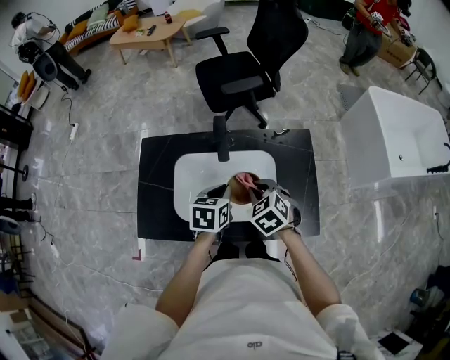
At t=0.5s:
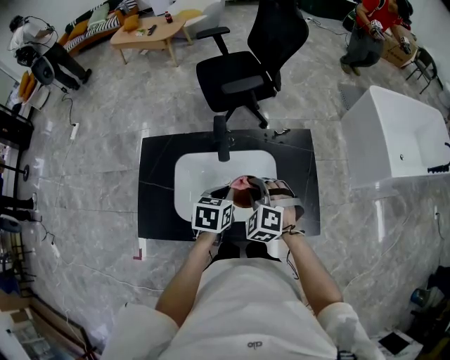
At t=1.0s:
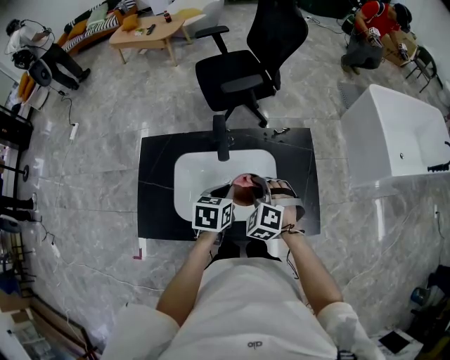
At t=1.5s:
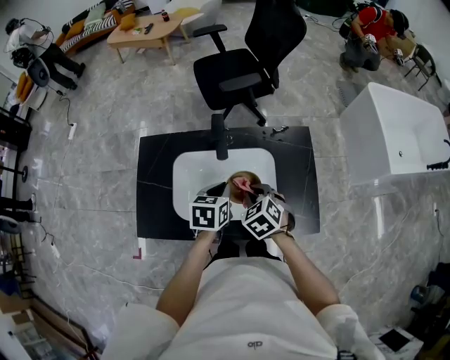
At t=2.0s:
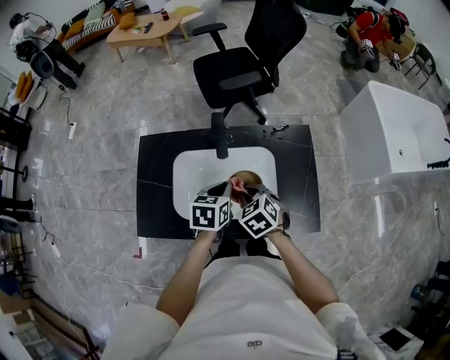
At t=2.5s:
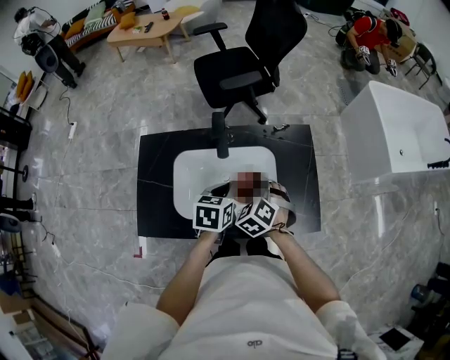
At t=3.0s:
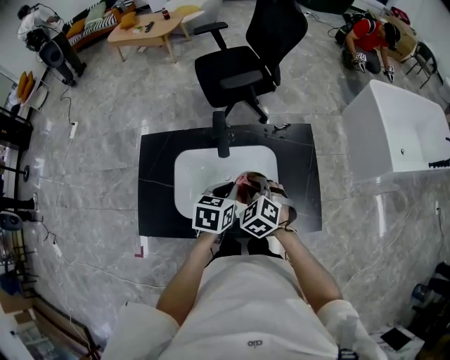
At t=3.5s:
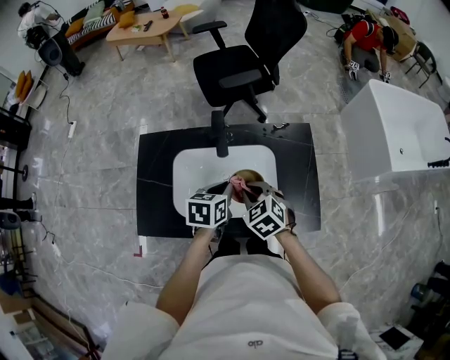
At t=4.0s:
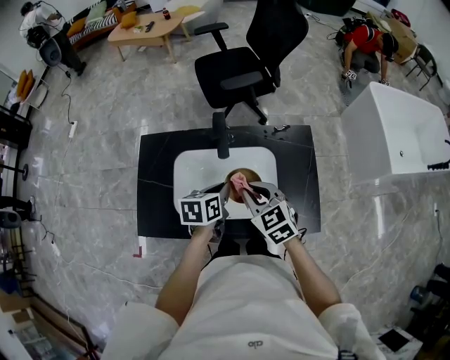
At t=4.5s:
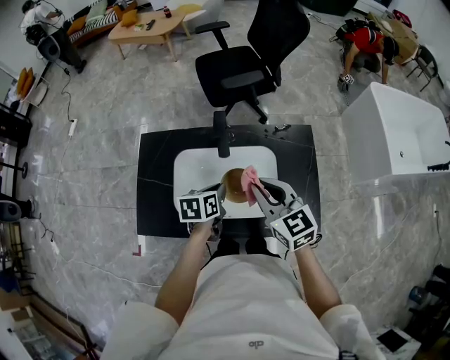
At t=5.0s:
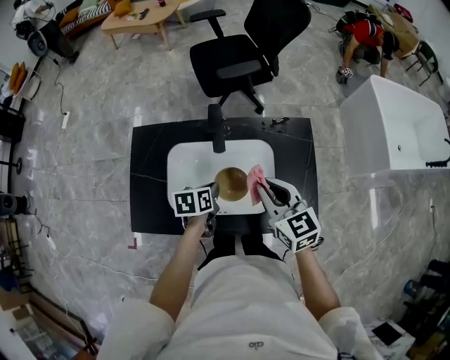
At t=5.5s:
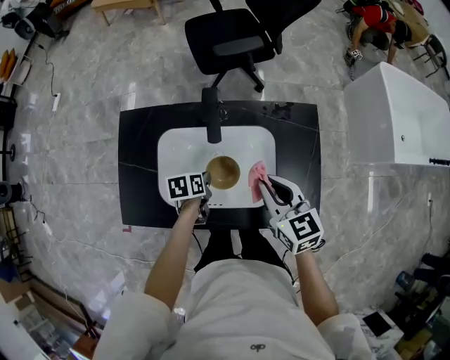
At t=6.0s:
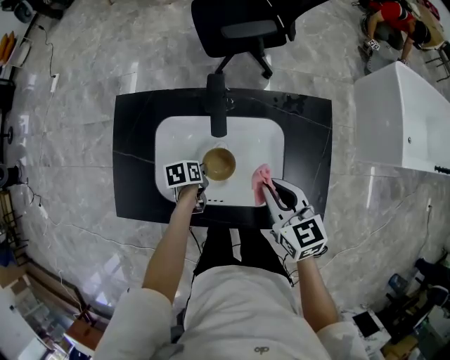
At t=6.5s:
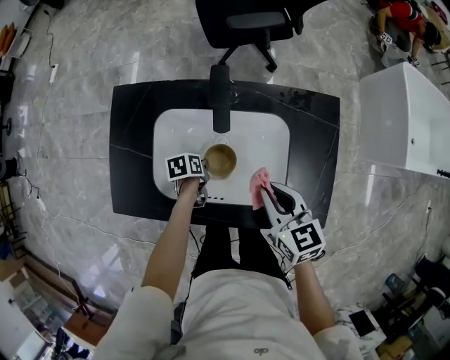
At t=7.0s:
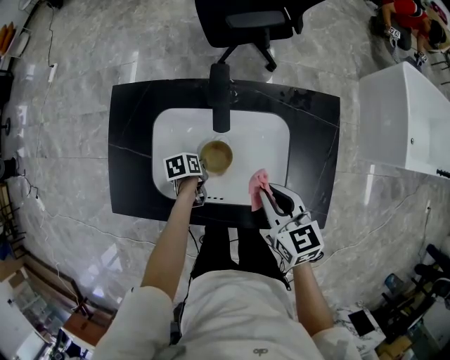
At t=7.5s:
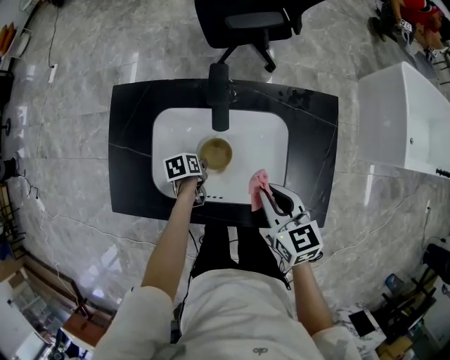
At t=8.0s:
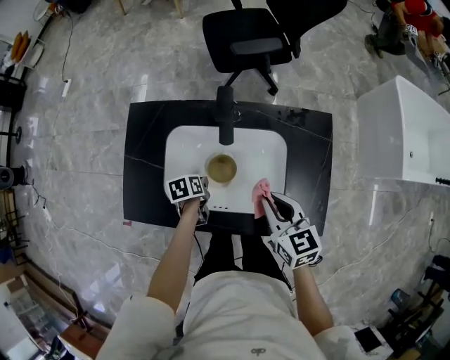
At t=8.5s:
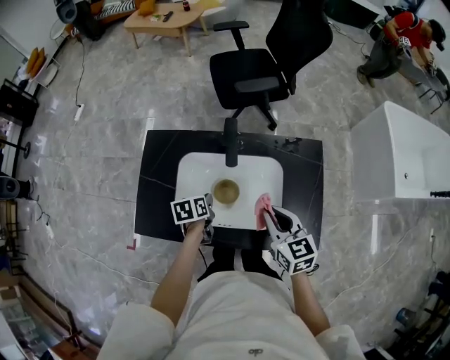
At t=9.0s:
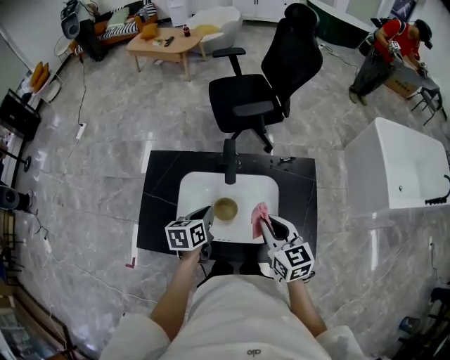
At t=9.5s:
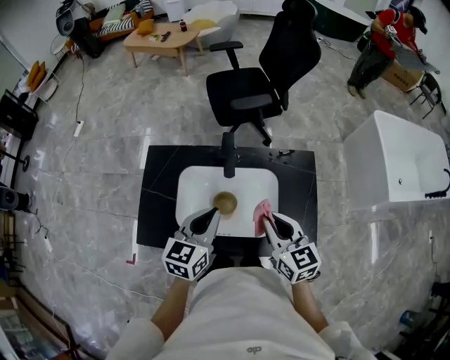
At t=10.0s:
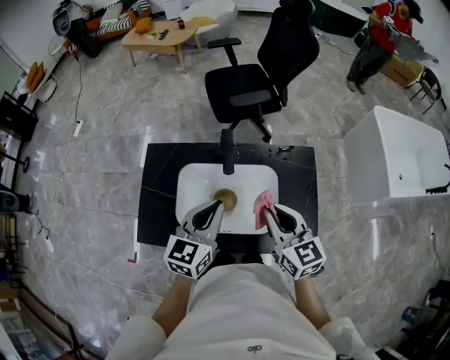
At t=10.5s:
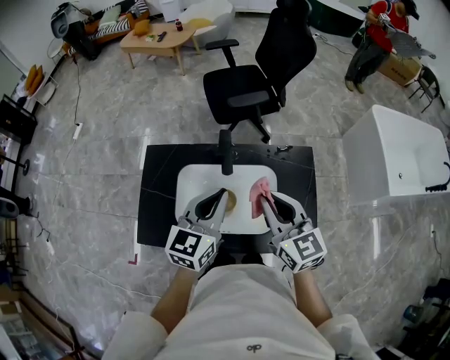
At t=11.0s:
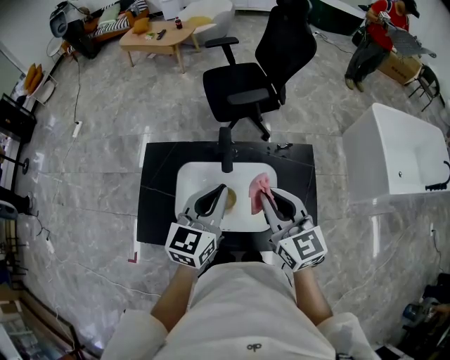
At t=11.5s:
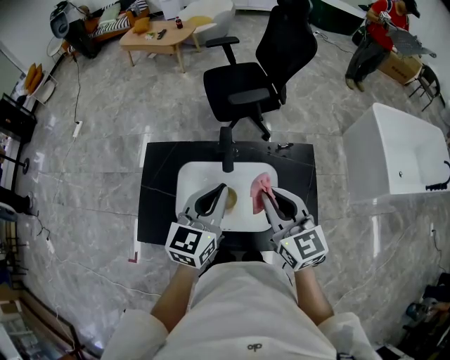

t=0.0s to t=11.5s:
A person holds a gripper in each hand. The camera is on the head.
t=2.0s to t=4.0s: The right gripper moves upward, about 5 cm.
t=4.0s to t=6.0s: The right gripper is displaced to the right by some 5 cm, and swivels some 20 degrees; the left gripper moves downward, approximately 20 cm, and turns by about 30 degrees.
t=6.0s to t=7.5s: The left gripper opens up.
t=7.5s to t=9.5s: The left gripper is displaced upward by about 40 cm, angles its fingers upward, by approximately 40 degrees, and closes. The right gripper heads upward, covering approximately 15 cm.
t=9.5s to t=11.5s: The two grippers go approximately 5 cm upward.

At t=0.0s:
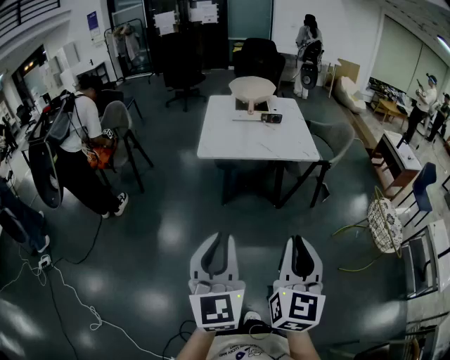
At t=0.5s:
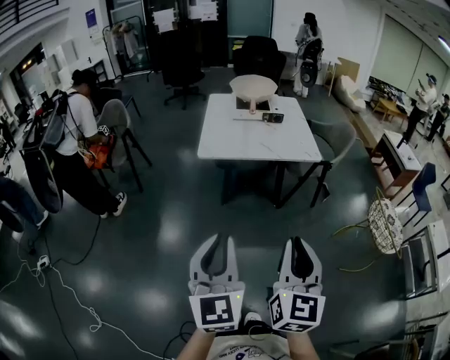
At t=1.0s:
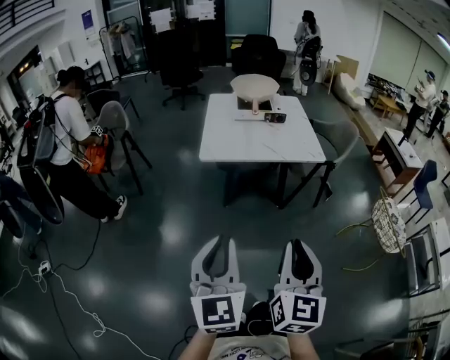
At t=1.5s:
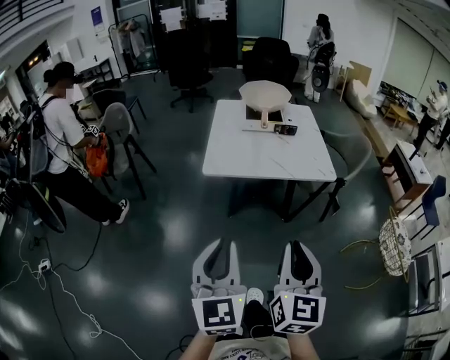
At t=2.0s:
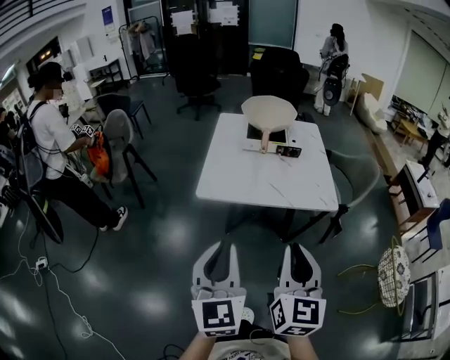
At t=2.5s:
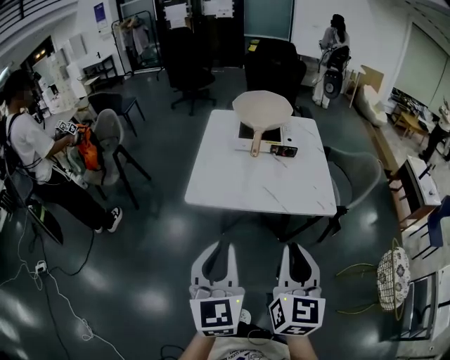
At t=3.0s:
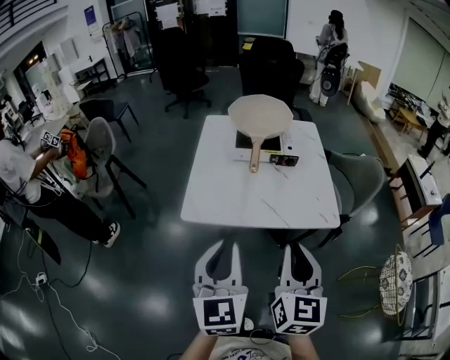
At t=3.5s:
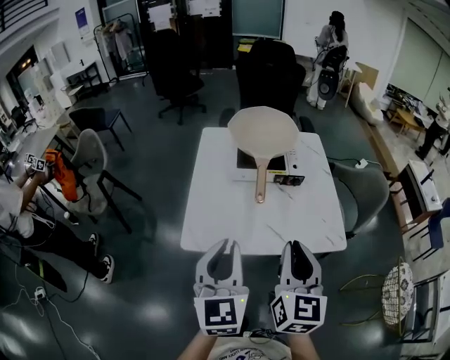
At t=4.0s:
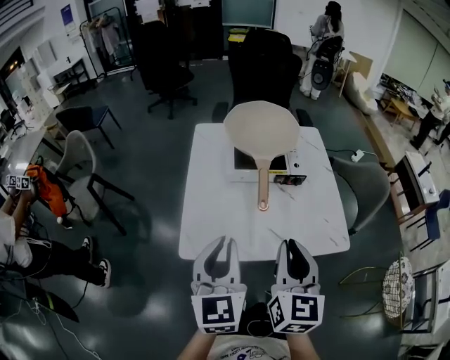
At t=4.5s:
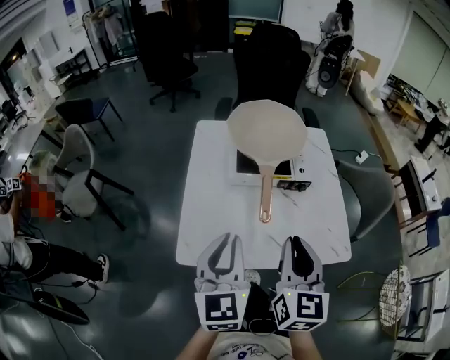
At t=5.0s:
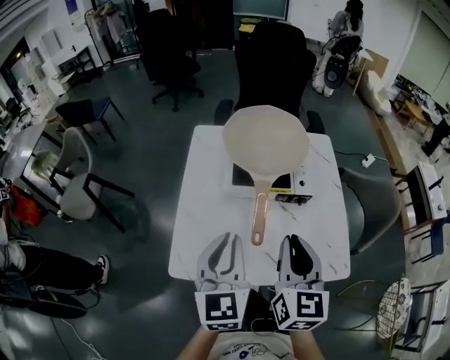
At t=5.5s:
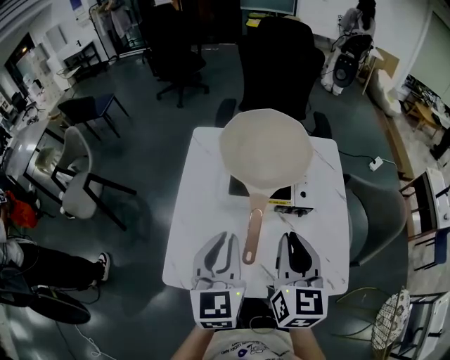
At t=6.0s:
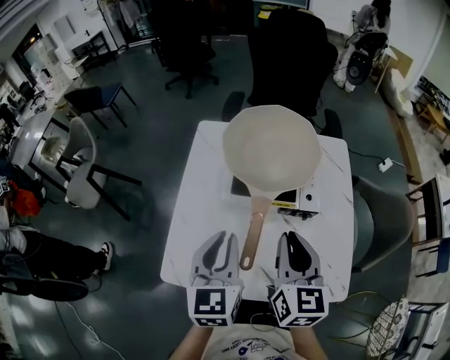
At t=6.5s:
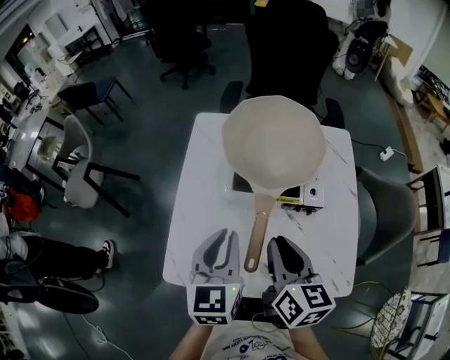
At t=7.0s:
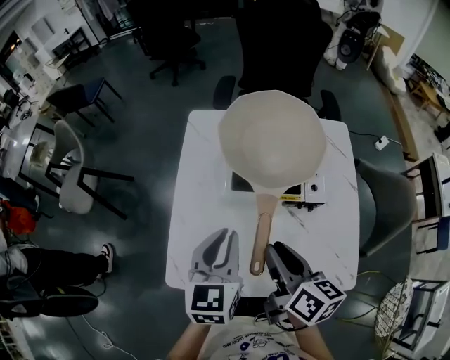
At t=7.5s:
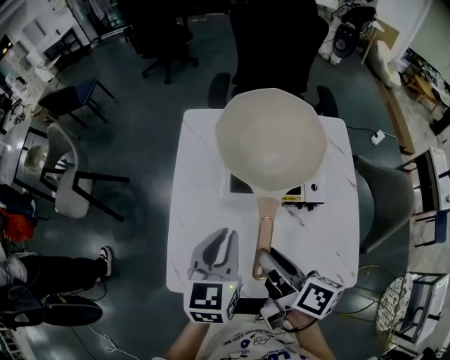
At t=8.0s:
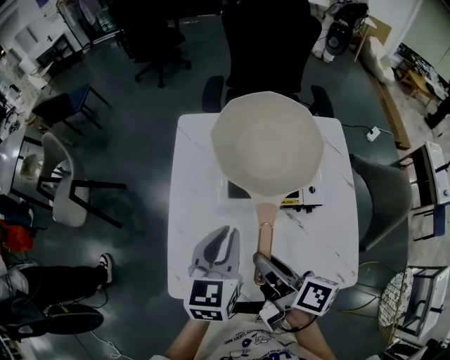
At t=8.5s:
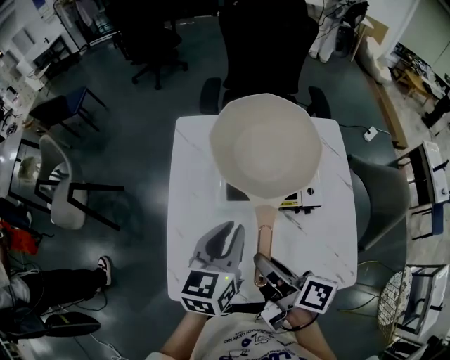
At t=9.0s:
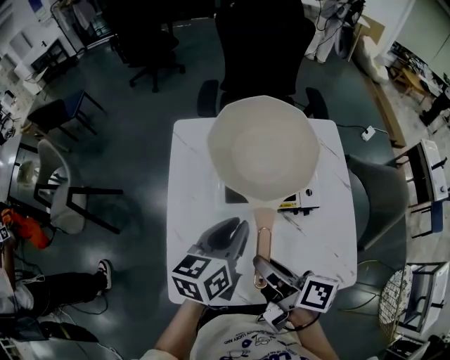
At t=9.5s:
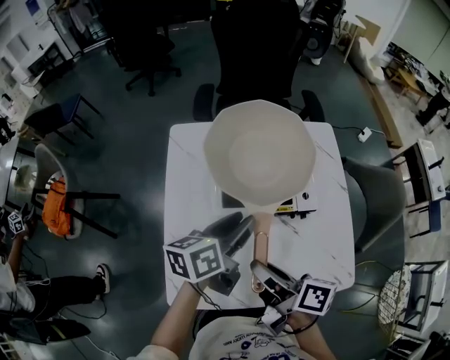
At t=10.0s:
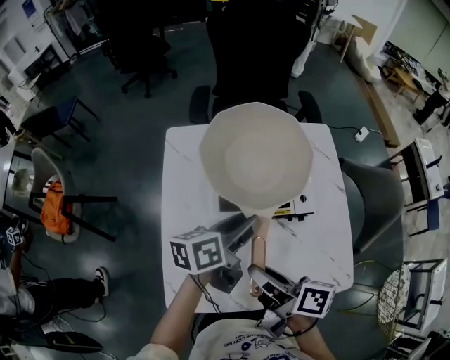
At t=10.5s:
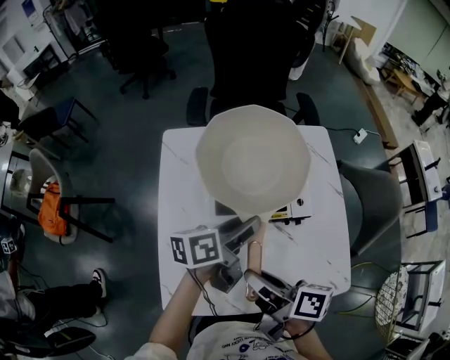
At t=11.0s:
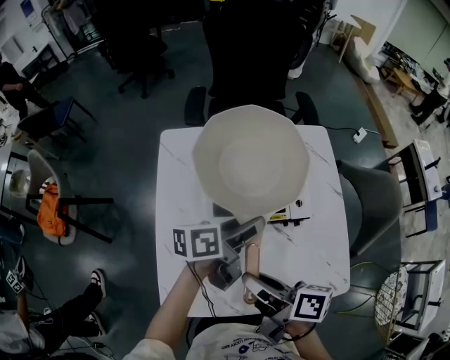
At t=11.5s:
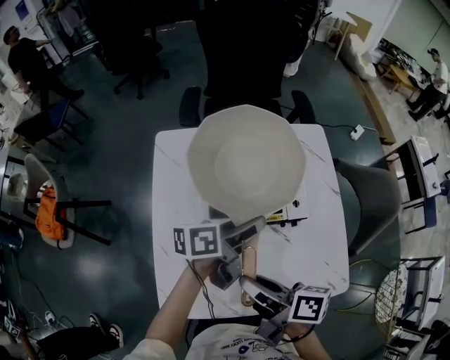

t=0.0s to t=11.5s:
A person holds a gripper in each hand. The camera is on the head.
t=0.0s to t=2.0s: The two grippers go some 25 cm forward.
t=2.0s to t=4.0s: The two grippers go some 30 cm forward.
t=4.0s to t=6.0s: The grippers both shift forward by roughly 20 cm.
t=6.0s to t=7.5s: The left gripper moves roughly 5 cm; the right gripper goes approximately 10 cm to the left and downward, twists about 50 degrees clockwise, seen from behind, and opens up.
t=7.5s to t=9.5s: The left gripper moves forward and to the right, about 10 cm, rotates about 40 degrees, and opens its fingers.
t=9.5s to t=11.5s: The left gripper heads to the right, covering approximately 5 cm, and turns by roughly 20 degrees.

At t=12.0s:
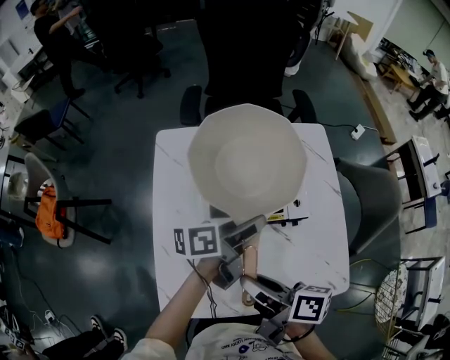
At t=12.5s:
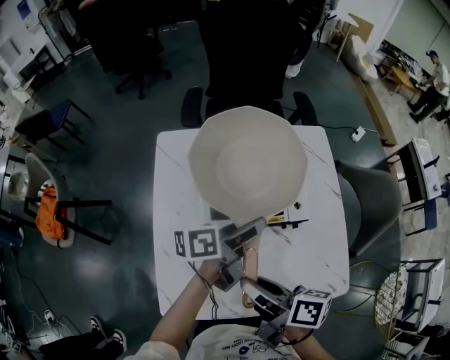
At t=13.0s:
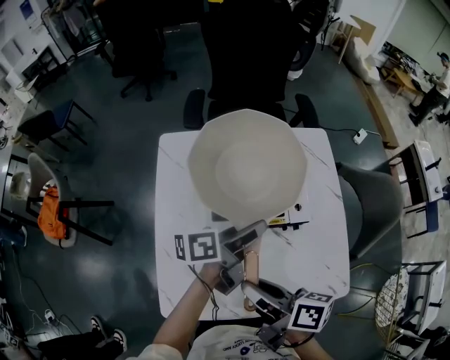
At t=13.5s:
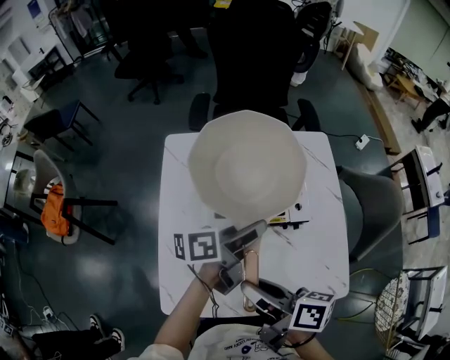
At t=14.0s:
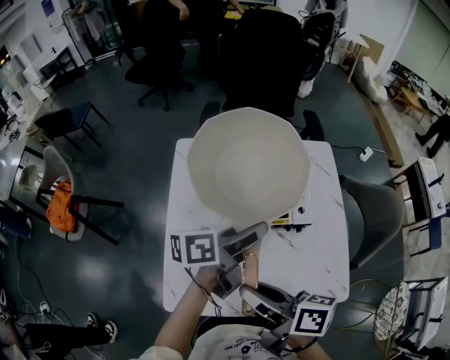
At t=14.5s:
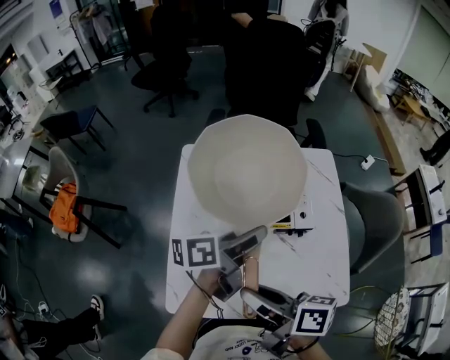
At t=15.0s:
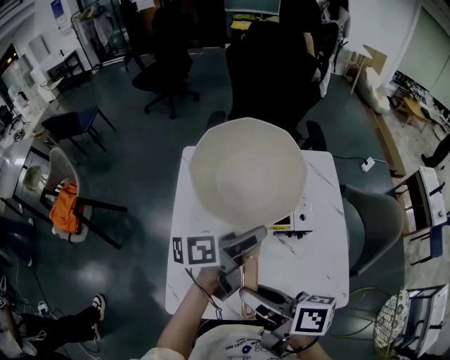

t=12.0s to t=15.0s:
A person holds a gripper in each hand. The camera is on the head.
t=12.0s to t=13.5s: The grippers make only small movements.
t=13.5s to t=15.0s: The right gripper shifts by some 5 cm. Meanwhile the left gripper moves approximately 5 cm.

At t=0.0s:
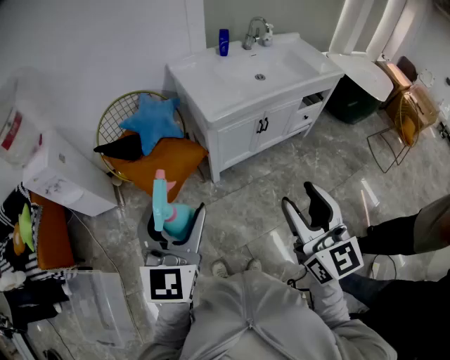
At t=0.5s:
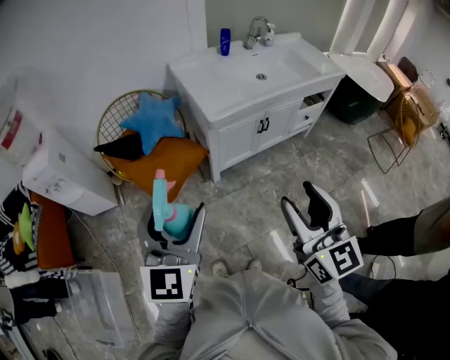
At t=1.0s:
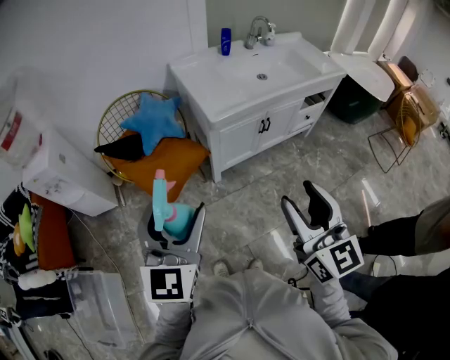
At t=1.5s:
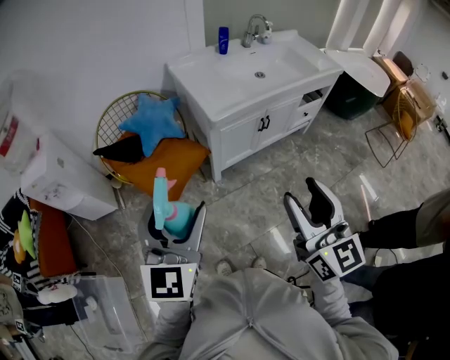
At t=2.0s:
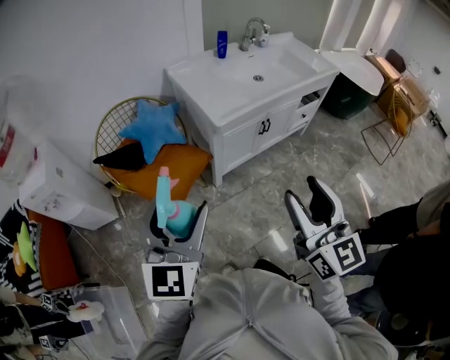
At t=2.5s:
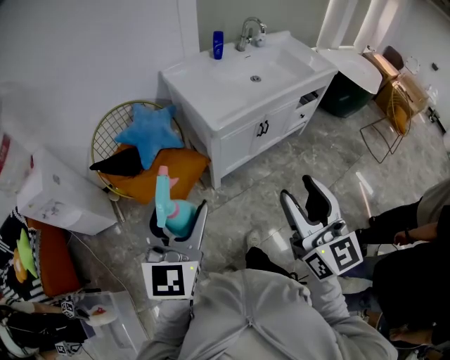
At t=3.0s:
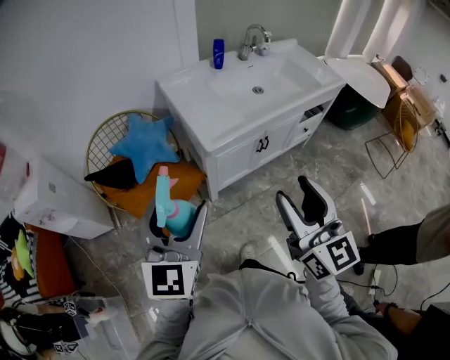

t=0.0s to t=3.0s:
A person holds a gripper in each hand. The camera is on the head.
t=0.0s to t=1.5s: The grippers move only a little.
t=1.5s to t=3.0s: Both grippers travel together forward, approximately 15 cm.
